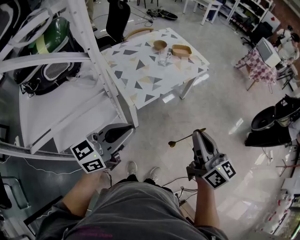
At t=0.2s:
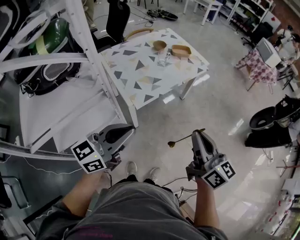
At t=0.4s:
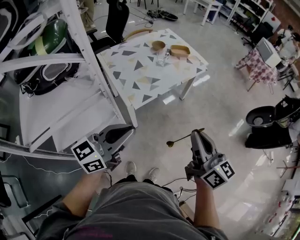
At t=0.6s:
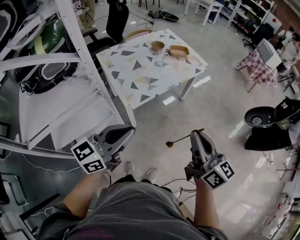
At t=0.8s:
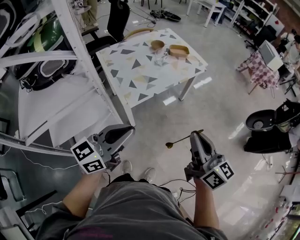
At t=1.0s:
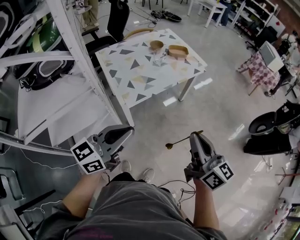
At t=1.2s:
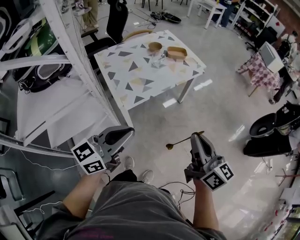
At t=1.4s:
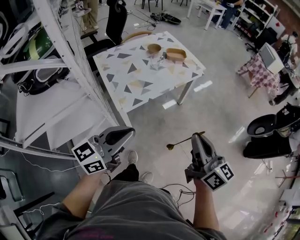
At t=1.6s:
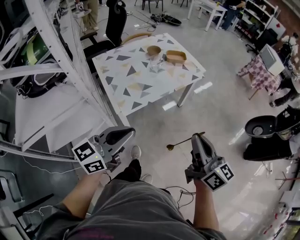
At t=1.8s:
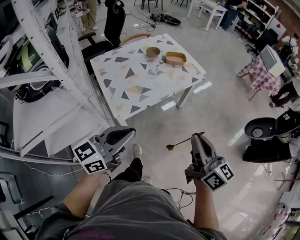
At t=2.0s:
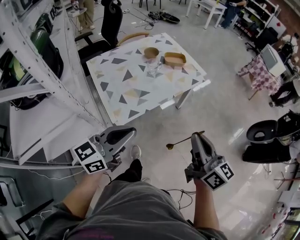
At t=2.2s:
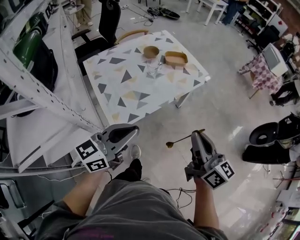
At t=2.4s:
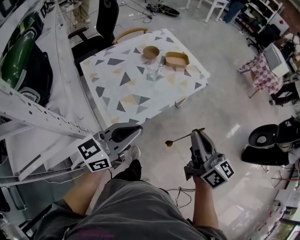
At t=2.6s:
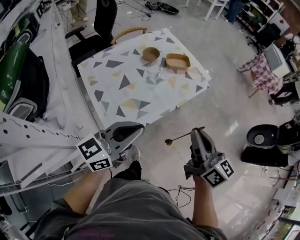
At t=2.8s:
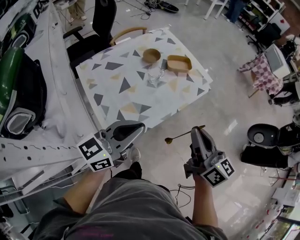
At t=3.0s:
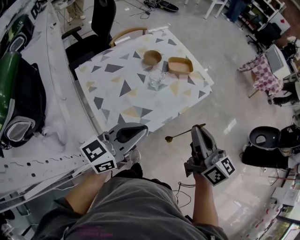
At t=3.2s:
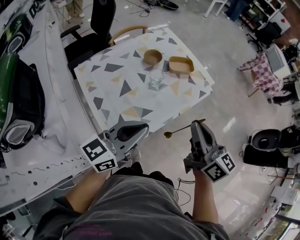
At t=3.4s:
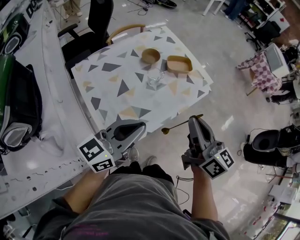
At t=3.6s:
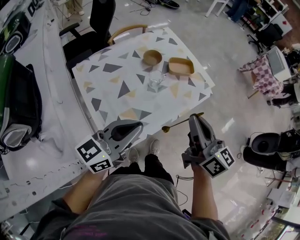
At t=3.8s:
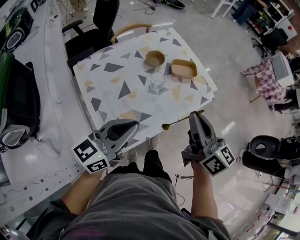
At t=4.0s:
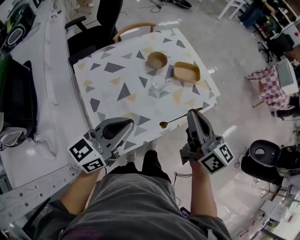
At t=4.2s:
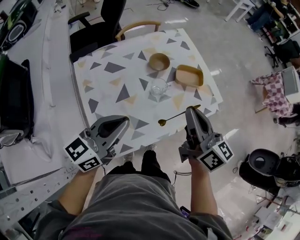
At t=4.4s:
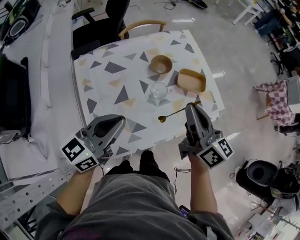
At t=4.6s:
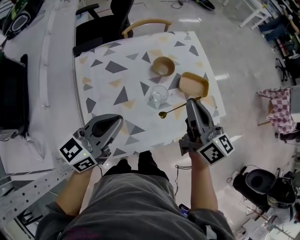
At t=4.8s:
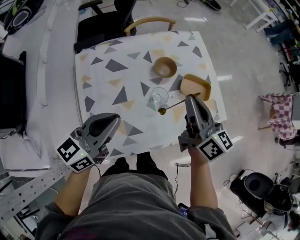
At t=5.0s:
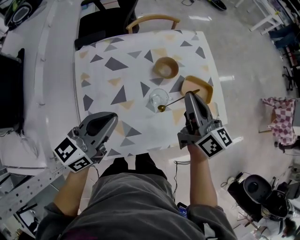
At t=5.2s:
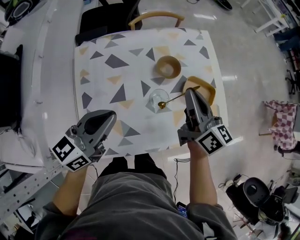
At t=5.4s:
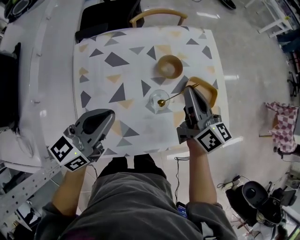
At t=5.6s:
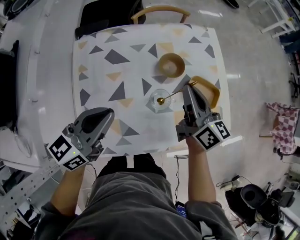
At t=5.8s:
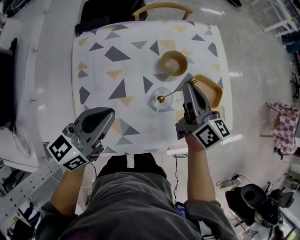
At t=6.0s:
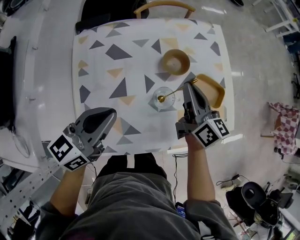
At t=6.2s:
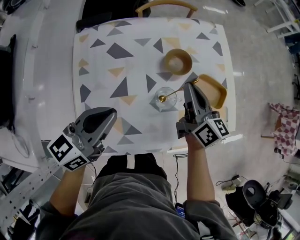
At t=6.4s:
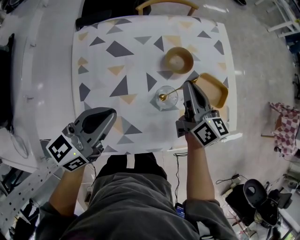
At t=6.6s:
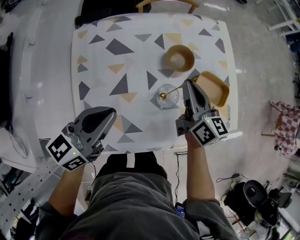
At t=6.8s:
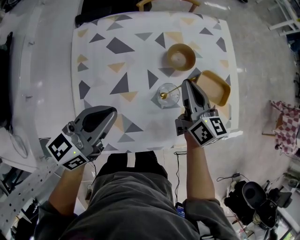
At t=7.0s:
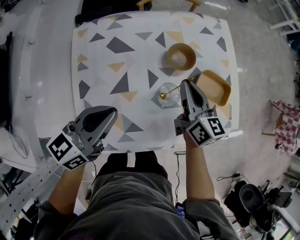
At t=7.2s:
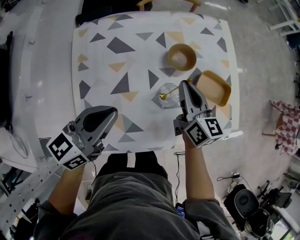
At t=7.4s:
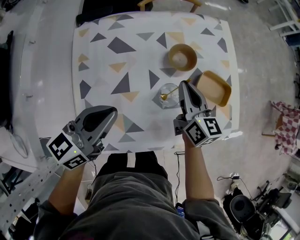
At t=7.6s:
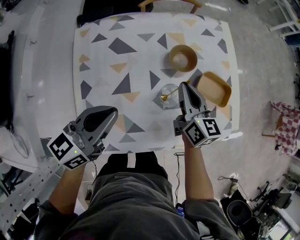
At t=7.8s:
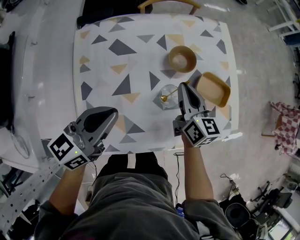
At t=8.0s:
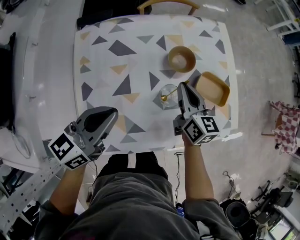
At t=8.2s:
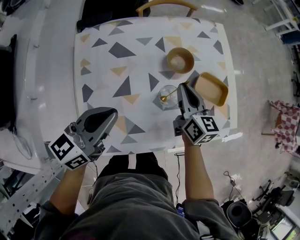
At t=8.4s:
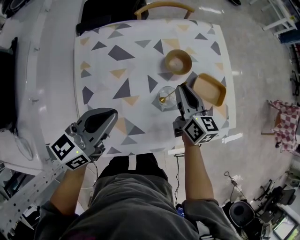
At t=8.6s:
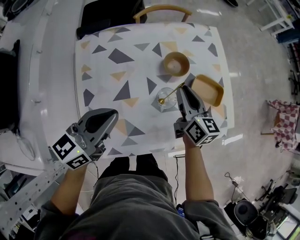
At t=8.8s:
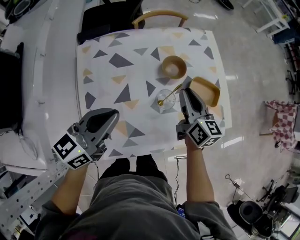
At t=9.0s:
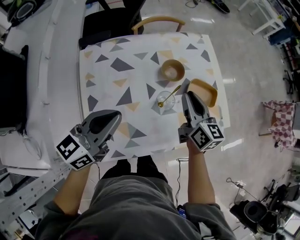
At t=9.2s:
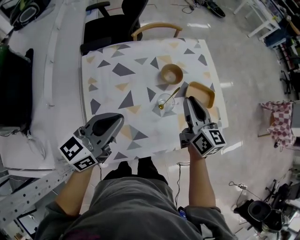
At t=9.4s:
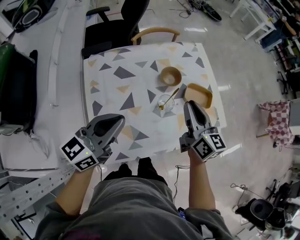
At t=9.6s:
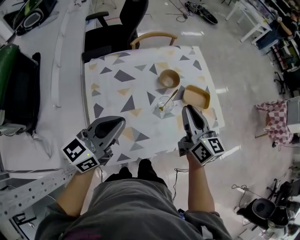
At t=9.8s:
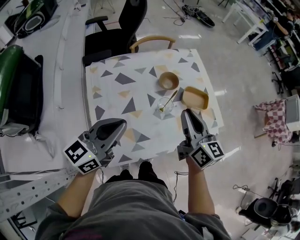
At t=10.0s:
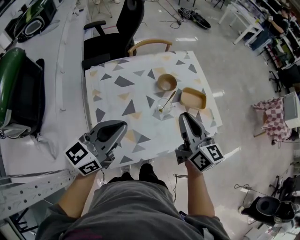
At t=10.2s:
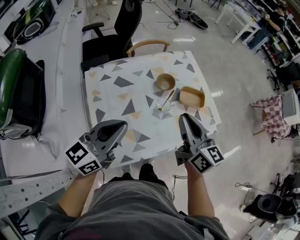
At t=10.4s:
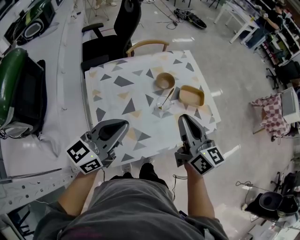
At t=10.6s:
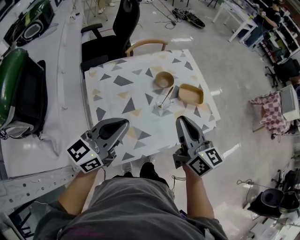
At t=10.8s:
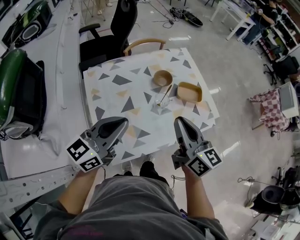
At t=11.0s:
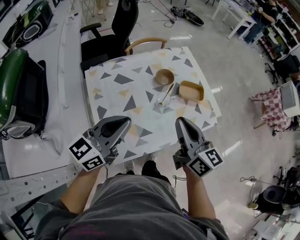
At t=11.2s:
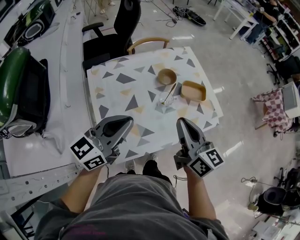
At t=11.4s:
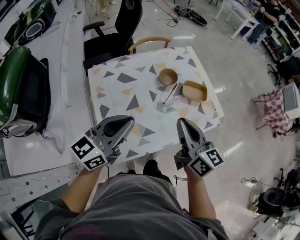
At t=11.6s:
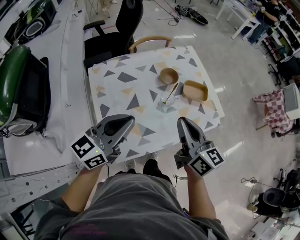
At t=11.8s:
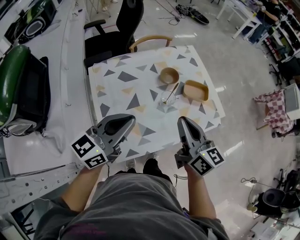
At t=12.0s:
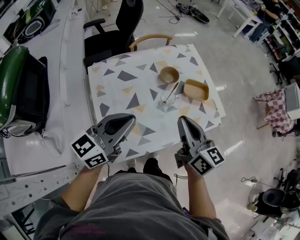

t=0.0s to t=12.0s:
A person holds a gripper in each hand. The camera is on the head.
t=0.0s to t=1.6s: The grippers both shift to the right and forward by approximately 10 cm.
t=1.6s to t=3.0s: The right gripper moves forward and to the left, approximately 30 cm. Meanwhile the left gripper shifts some 25 cm forward.
t=3.0s to t=4.4s: The left gripper is displaced forward and to the left by some 15 cm, and swivels some 20 degrees; the right gripper is displaced forward by approximately 25 cm.
t=4.4s to t=6.0s: The right gripper heads forward and downward, covering about 20 cm. Meanwhile the left gripper goes approximately 10 cm forward and downward.
t=6.0s to t=7.6s: The right gripper is displaced downward by some 5 cm.
t=7.6s to t=9.0s: The two grippers go roughly 5 cm upward.
t=9.0s to t=10.4s: The right gripper is displaced backward and upward by roughly 20 cm, while the left gripper moves backward and upward, roughly 10 cm.
t=10.4s to t=12.0s: There are only small adjustments of the grippers.

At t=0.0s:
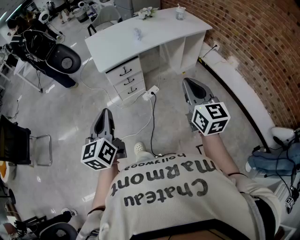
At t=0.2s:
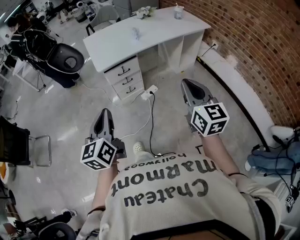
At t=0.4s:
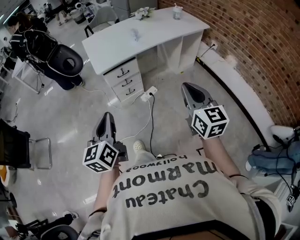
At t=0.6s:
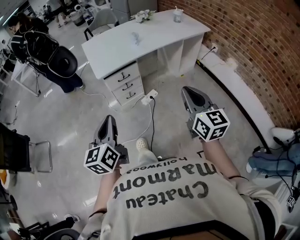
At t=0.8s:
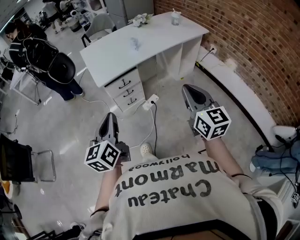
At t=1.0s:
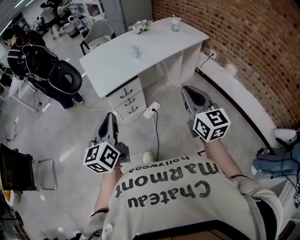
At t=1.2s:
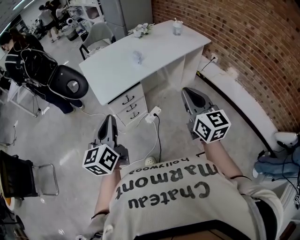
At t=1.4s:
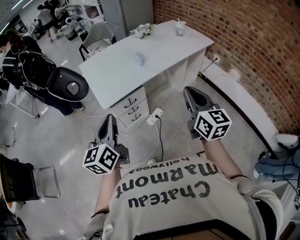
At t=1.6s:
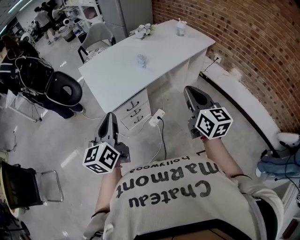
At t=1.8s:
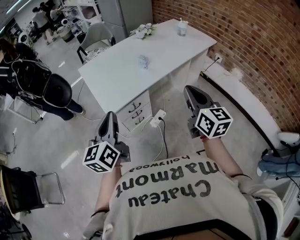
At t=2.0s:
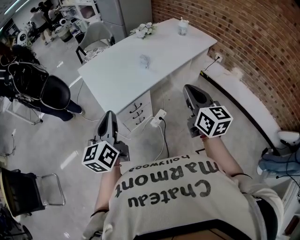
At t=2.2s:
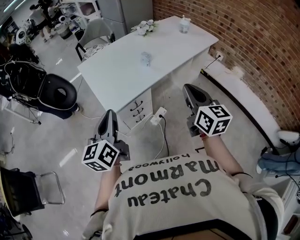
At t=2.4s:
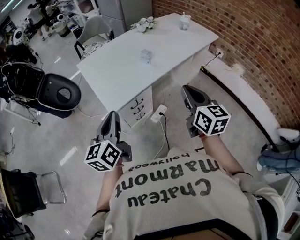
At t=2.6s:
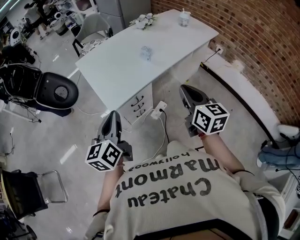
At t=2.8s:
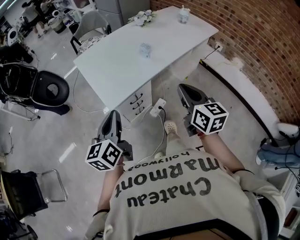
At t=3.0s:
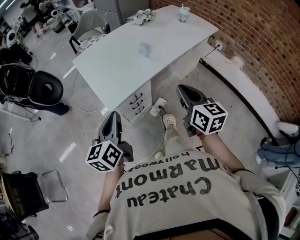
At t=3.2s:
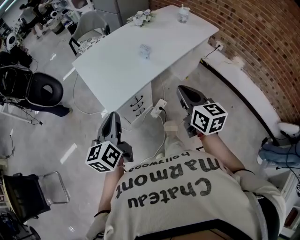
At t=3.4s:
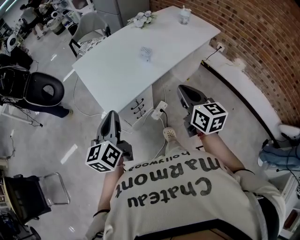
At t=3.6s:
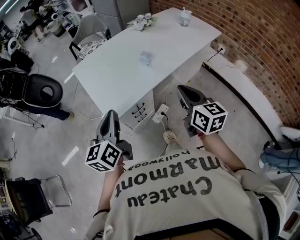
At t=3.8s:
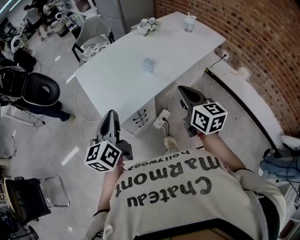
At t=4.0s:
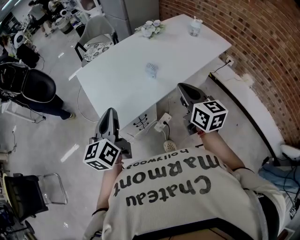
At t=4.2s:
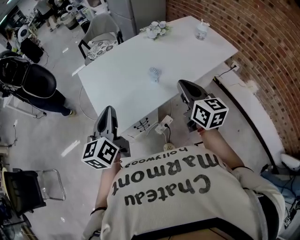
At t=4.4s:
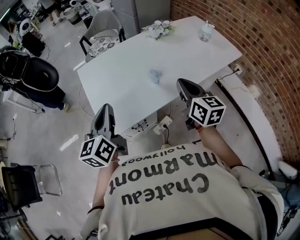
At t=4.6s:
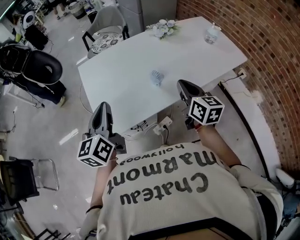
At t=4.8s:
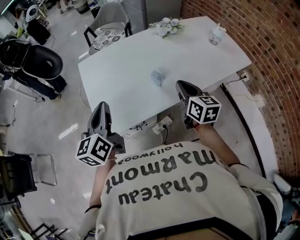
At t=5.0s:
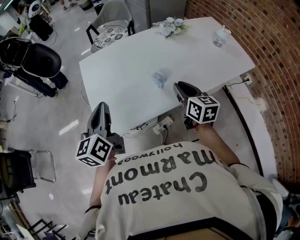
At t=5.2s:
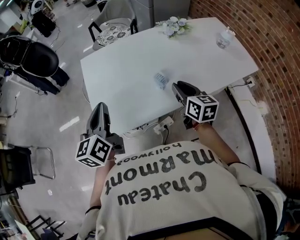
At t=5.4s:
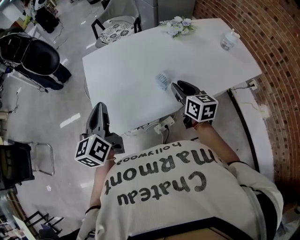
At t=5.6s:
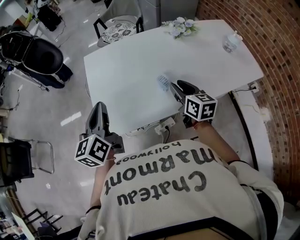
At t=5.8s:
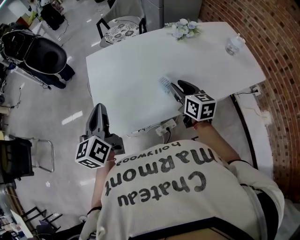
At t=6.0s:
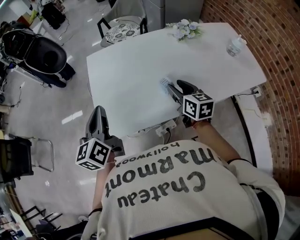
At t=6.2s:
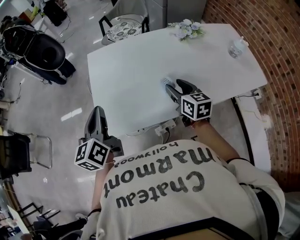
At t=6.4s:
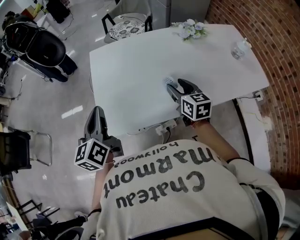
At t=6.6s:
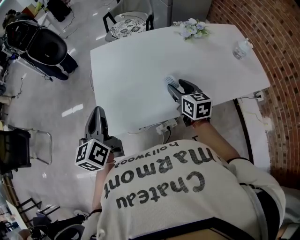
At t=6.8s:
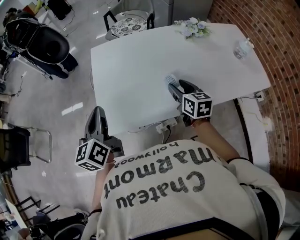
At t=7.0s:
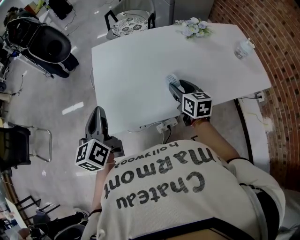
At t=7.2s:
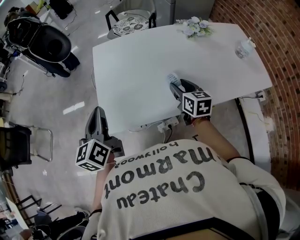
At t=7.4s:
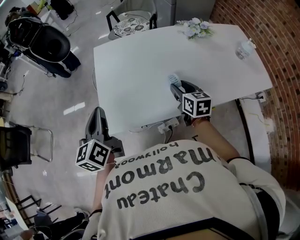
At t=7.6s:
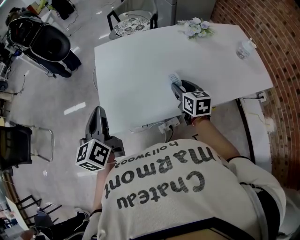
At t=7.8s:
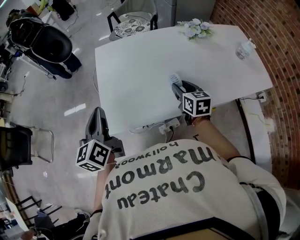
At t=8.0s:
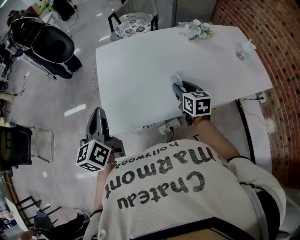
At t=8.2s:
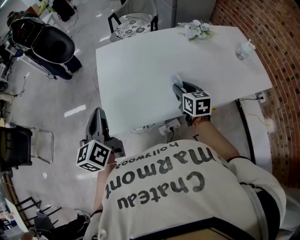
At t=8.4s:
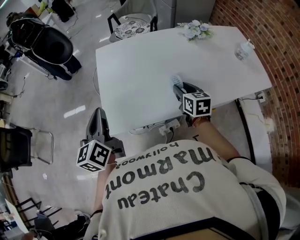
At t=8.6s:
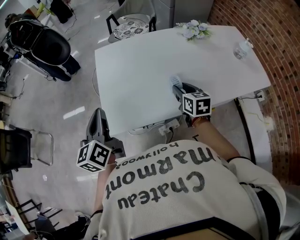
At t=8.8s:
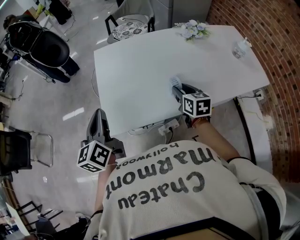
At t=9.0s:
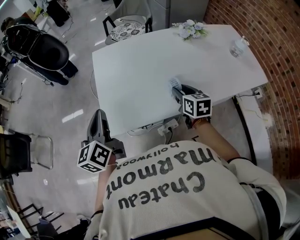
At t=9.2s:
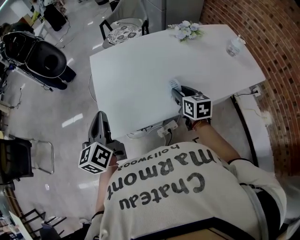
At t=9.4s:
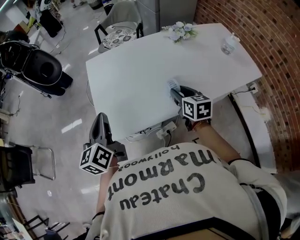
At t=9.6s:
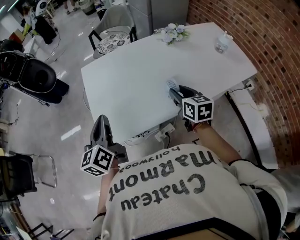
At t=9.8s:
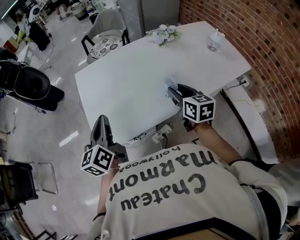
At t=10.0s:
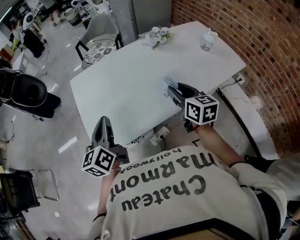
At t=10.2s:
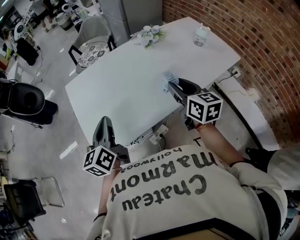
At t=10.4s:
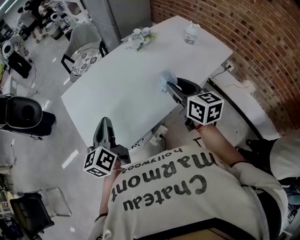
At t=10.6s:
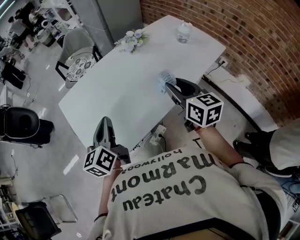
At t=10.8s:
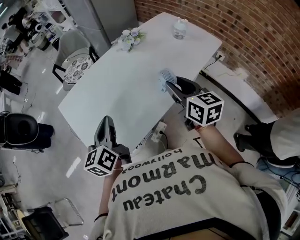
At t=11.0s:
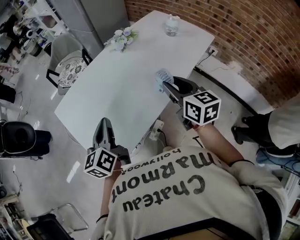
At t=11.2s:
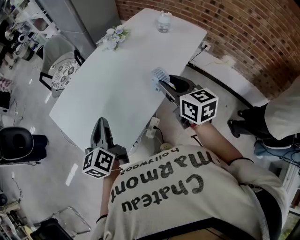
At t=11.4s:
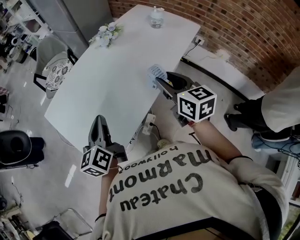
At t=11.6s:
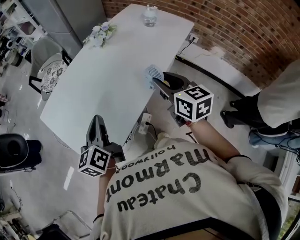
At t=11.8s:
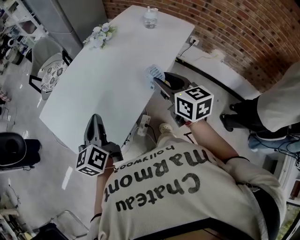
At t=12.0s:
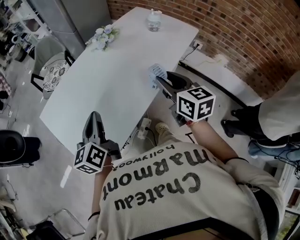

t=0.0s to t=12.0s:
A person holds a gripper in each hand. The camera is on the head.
t=0.0s to t=1.6s: The grippers both shift forward by roughly 25 cm.
t=1.6s to t=3.0s: The right gripper goes about 10 cm to the left, downward and forward, while the left gripper travels downward and forward by about 10 cm.
t=3.0s to t=4.4s: Both grippers move forward, about 25 cm.
t=4.4s to t=6.0s: The right gripper moves forward and downward, about 20 cm, turns by about 20 degrees, and opens its fingers. Meanwhile the left gripper heads forward, covering roughly 5 cm.
t=6.0s to t=9.0s: The grippers move only a little.
t=9.0s to t=10.4s: The left gripper travels to the right and forward by approximately 15 cm, and changes its angle by some 20 degrees, while the right gripper shifts roughly 15 cm upward and to the right, and changes its angle by approximately 20 degrees.
t=10.4s to t=12.0s: The left gripper ends up some 5 cm from where it was; the right gripper changes place by some 5 cm.
